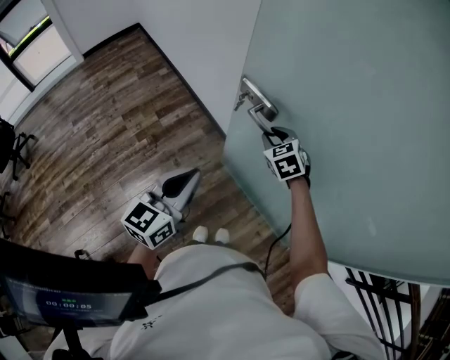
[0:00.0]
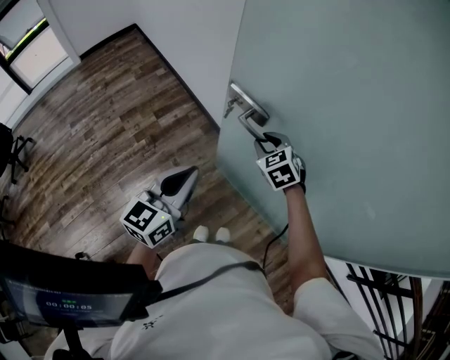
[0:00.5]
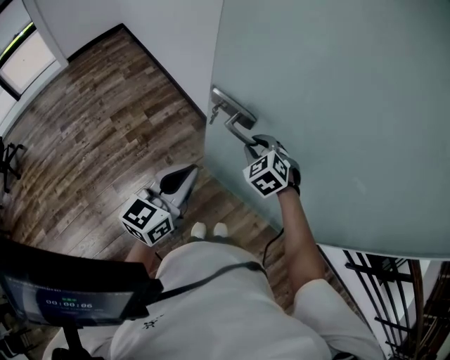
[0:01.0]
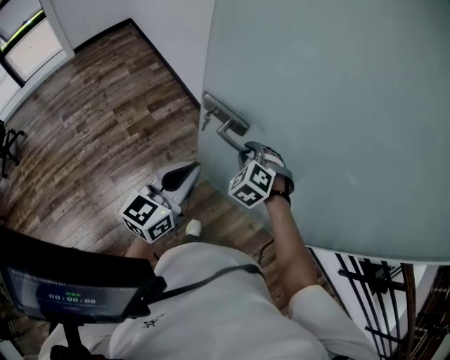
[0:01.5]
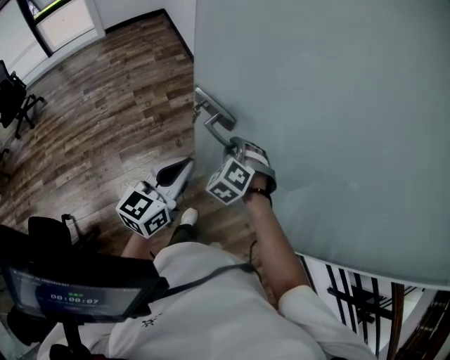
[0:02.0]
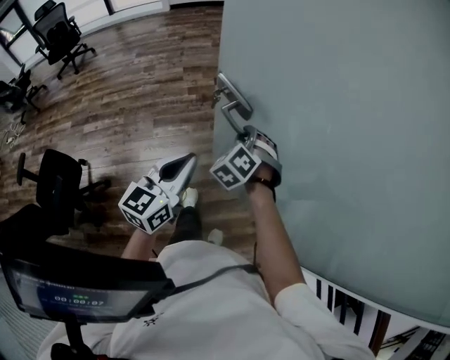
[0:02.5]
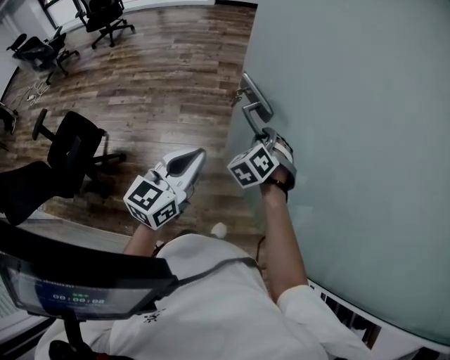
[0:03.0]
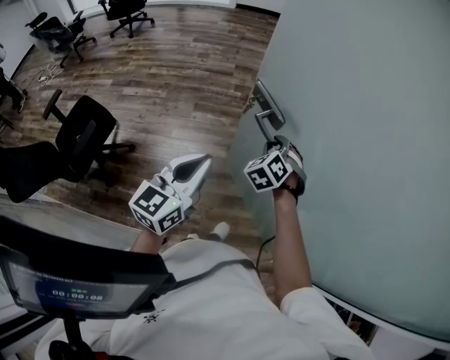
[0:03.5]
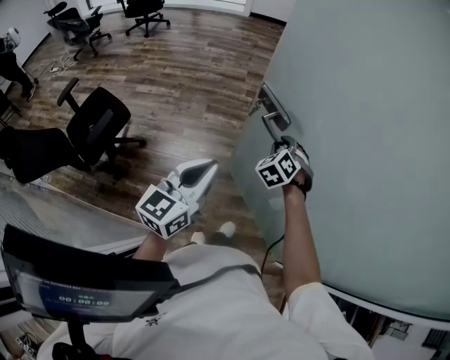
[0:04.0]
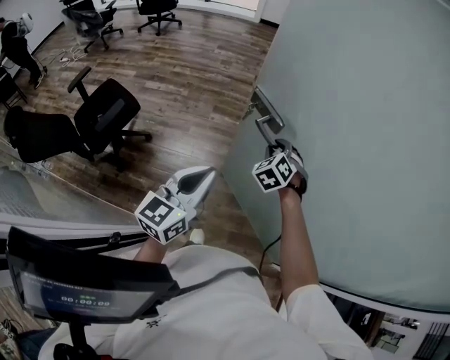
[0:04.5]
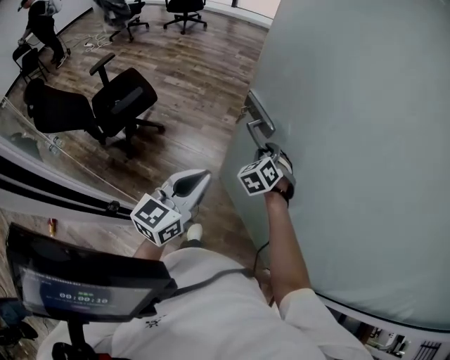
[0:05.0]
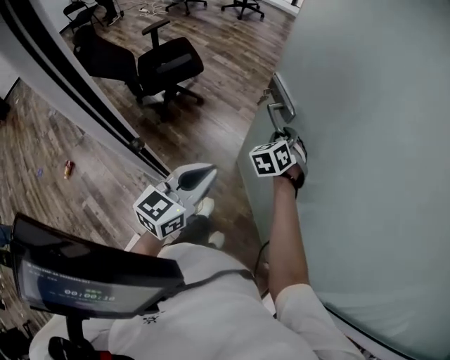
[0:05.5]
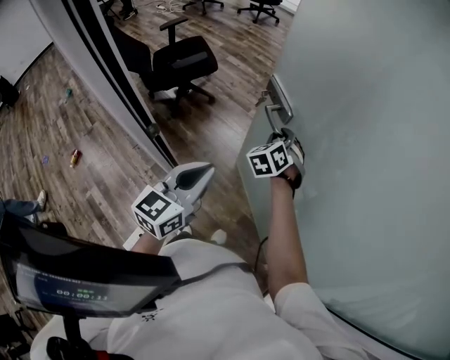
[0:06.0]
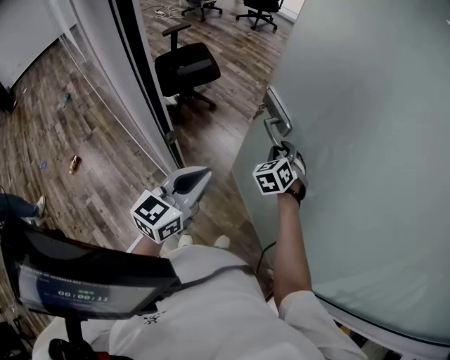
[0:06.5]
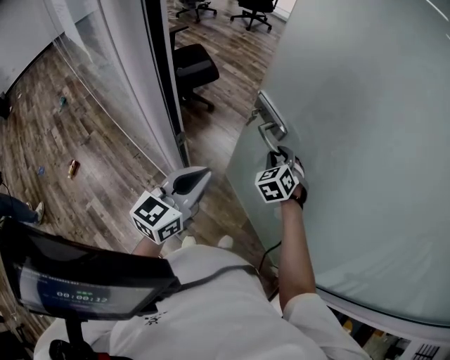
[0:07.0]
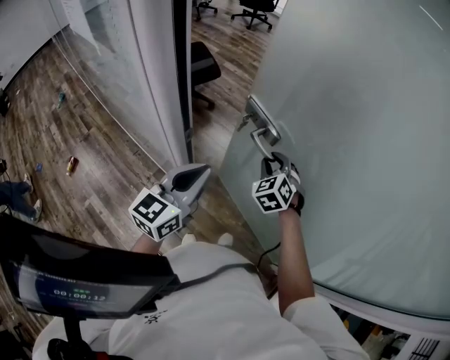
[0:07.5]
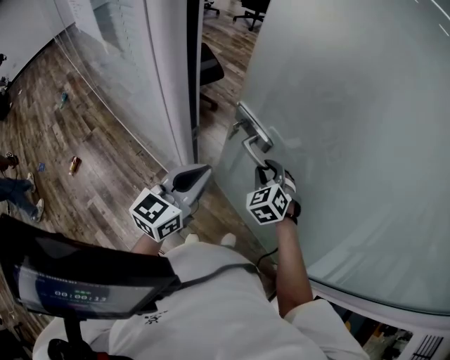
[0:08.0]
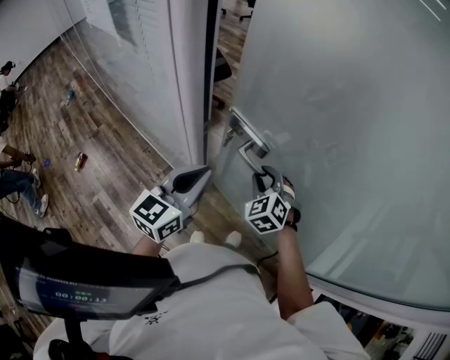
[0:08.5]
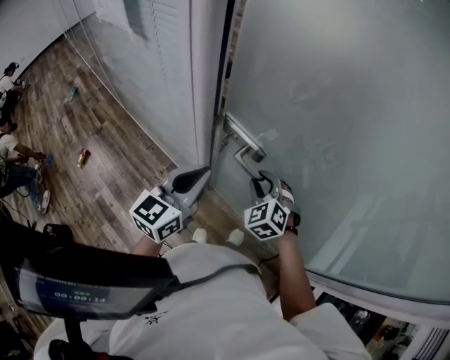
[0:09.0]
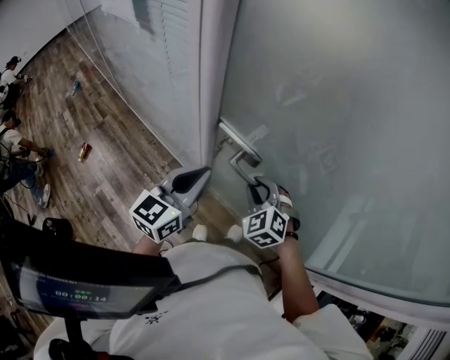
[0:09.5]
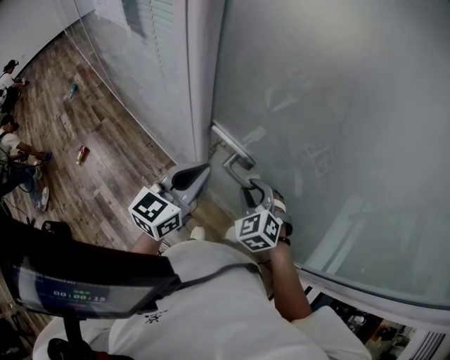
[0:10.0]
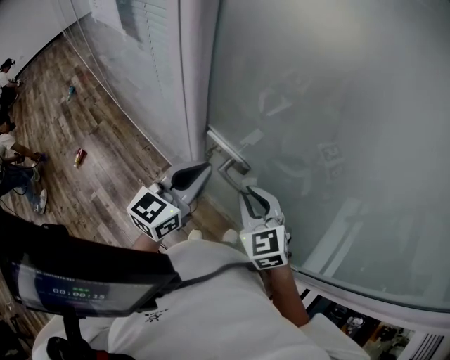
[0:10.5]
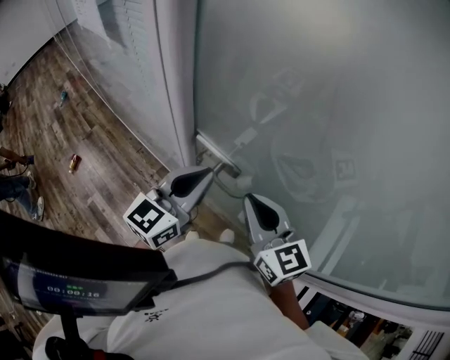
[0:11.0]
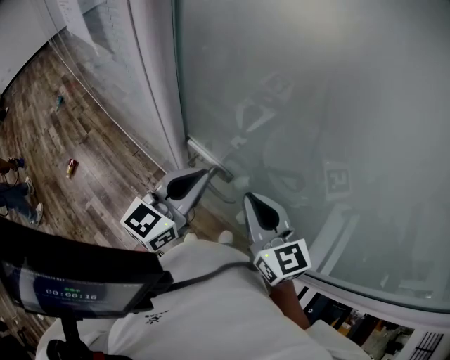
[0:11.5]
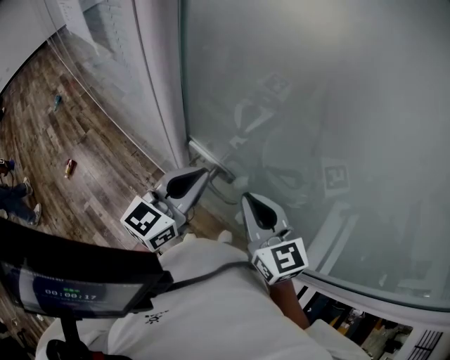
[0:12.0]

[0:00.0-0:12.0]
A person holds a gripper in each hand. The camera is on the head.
0:00.0 to 0:02.0: The right gripper shifts some 20 cm backward, and turns by some 40 degrees. The left gripper travels backward by roughly 10 cm.
0:02.0 to 0:04.0: The left gripper ends up roughly 40 cm from where it was, and turns by about 30 degrees. The right gripper moves roughly 25 cm.
0:04.0 to 0:06.0: The left gripper moves approximately 30 cm, and swivels approximately 30 degrees; the right gripper ends up roughly 25 cm from where it was, and turns by roughly 20 degrees.
0:06.0 to 0:08.0: The right gripper shifts roughly 20 cm backward and to the left. Meanwhile the left gripper heads to the left and backward, covering about 15 cm.
0:08.0 to 0:10.0: The right gripper goes approximately 15 cm backward and to the left, while the left gripper moves backward, about 5 cm.
0:10.0 to 0:12.0: The right gripper is displaced upward by roughly 15 cm, swivels roughly 50 degrees, and closes up. The left gripper ends up approximately 5 cm from where it was.

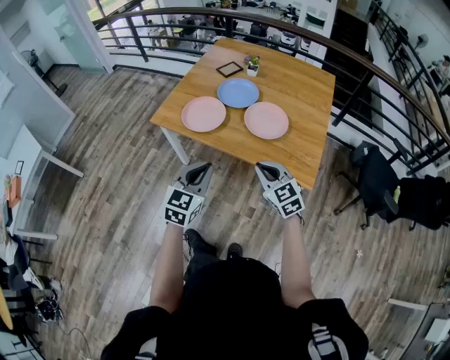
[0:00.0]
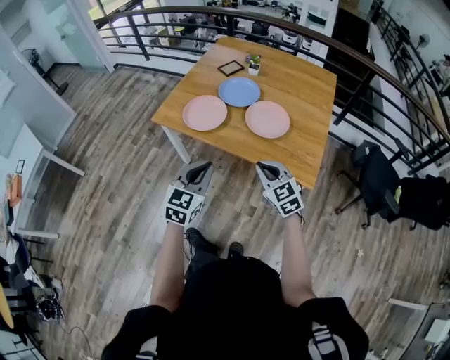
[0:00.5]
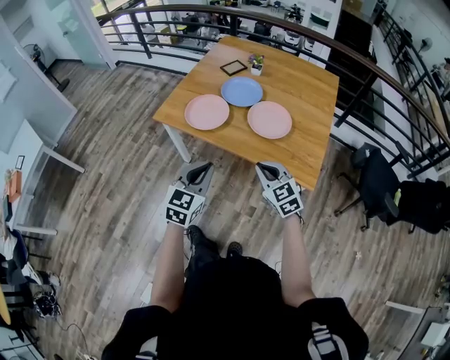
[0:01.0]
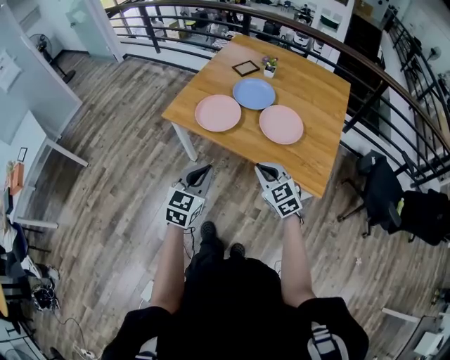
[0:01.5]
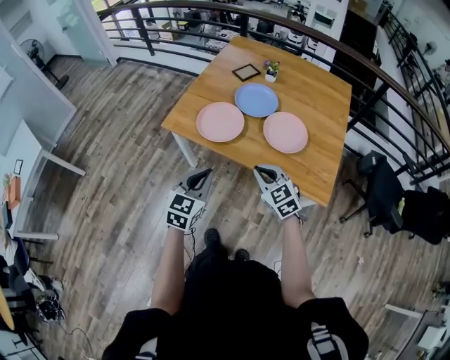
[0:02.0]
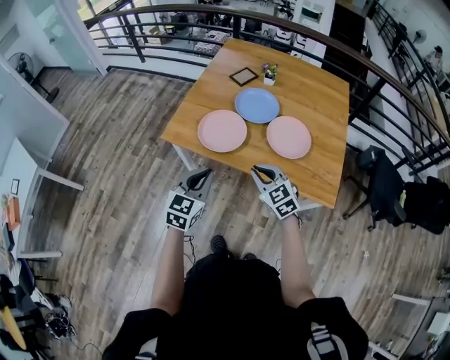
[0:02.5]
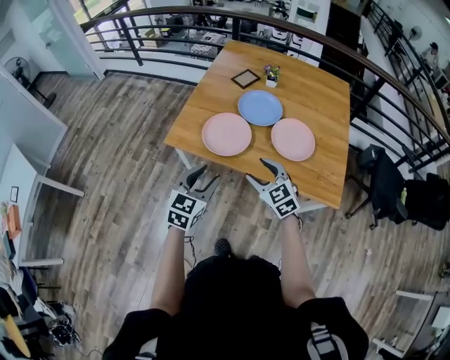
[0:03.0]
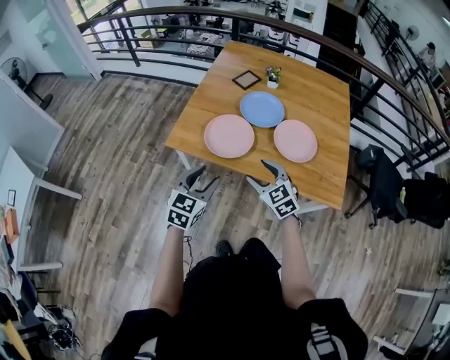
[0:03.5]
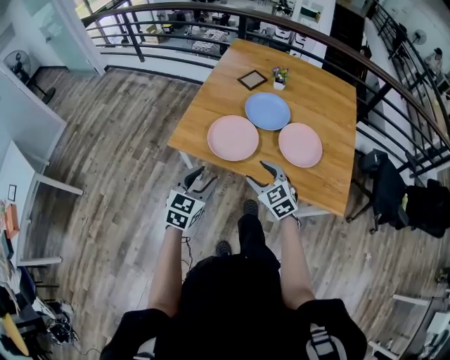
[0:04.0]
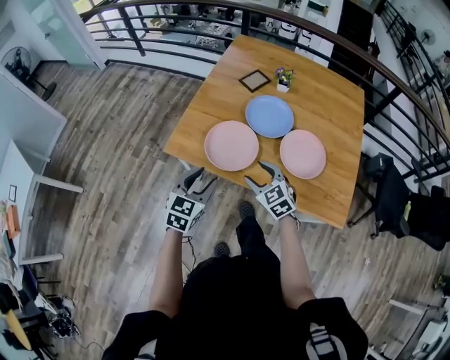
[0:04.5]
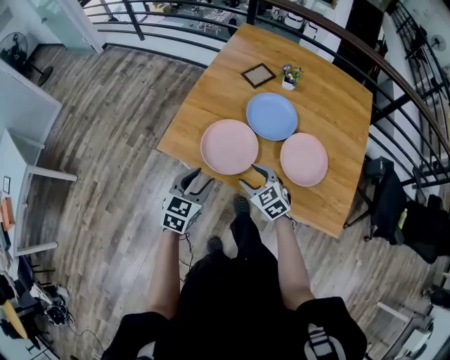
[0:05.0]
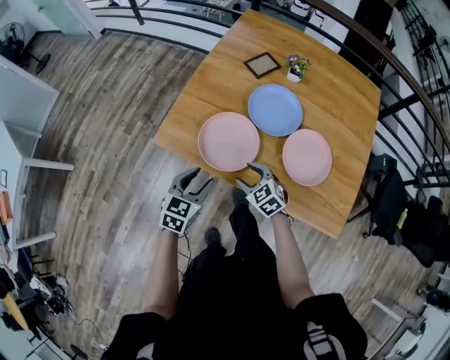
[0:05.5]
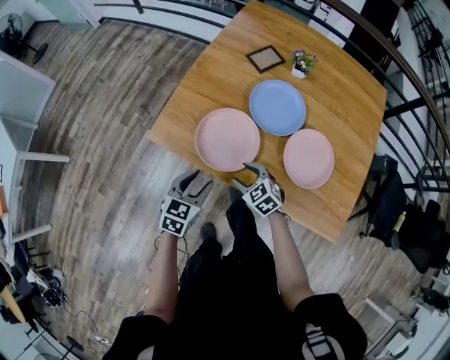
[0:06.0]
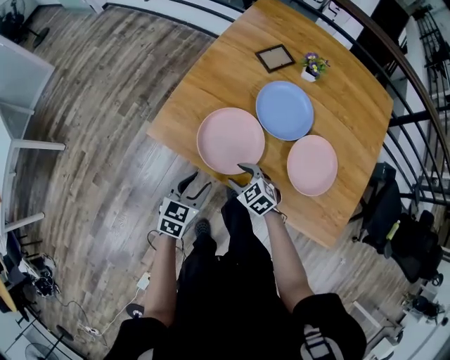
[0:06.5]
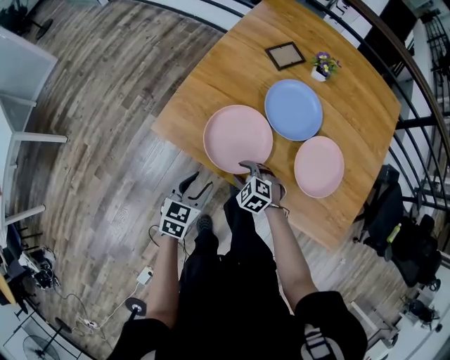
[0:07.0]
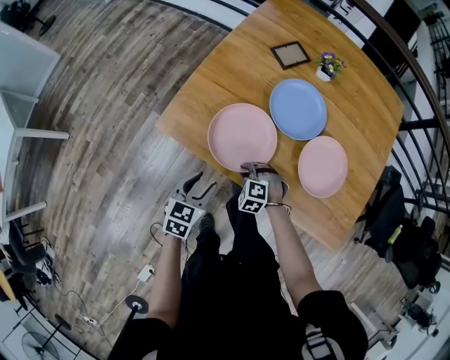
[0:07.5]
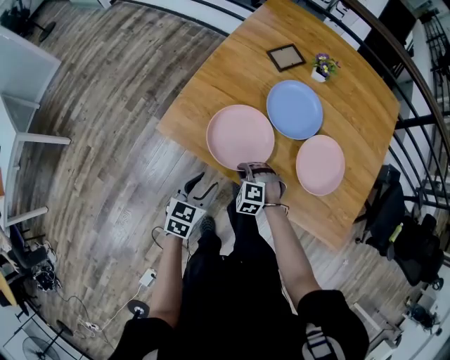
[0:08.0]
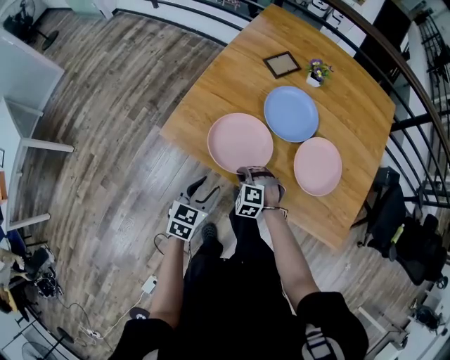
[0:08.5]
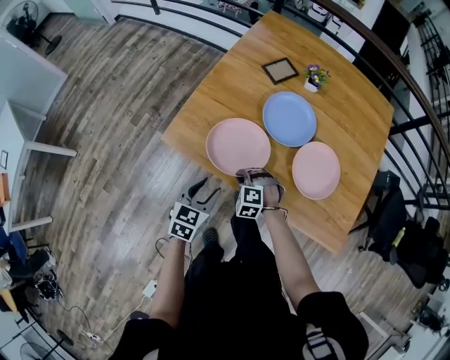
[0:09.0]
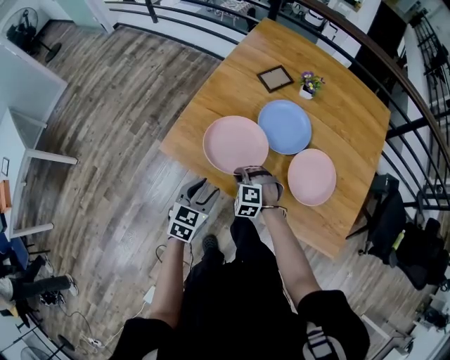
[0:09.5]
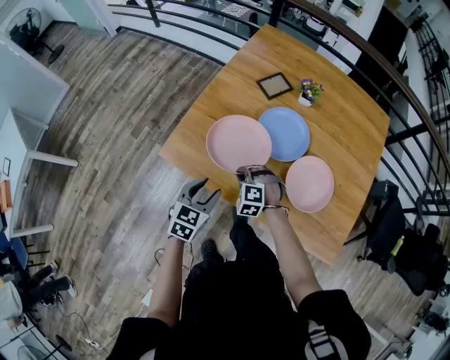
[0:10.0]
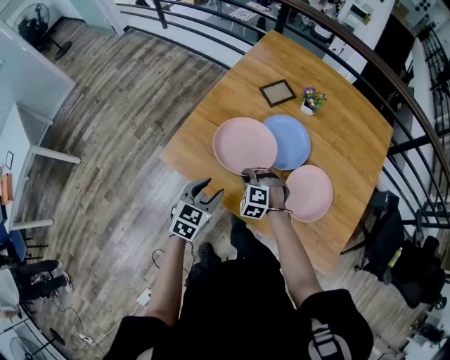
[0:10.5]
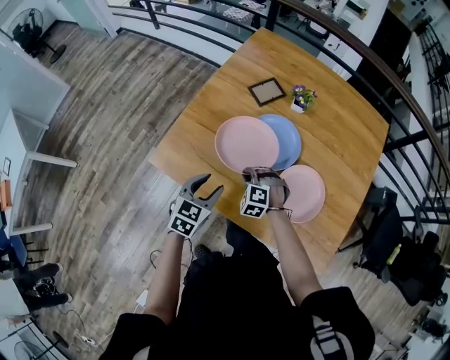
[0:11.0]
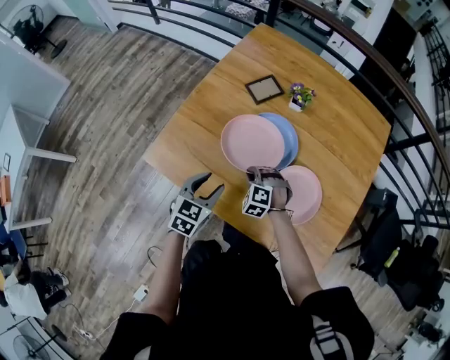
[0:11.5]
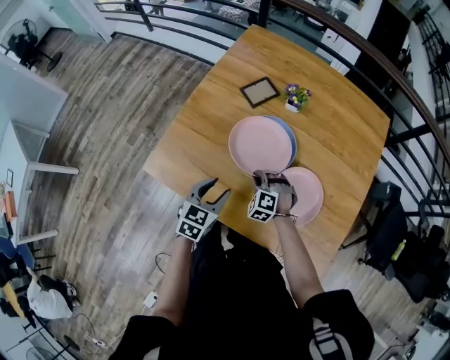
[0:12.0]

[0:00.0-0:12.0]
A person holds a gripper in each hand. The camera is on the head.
0:00.0 to 0:02.0: Both grippers move to the left and forward, approximately 10 cm.
0:02.0 to 0:04.0: The right gripper moves to the left and forward, roughly 15 cm, and opens. Meanwhile the left gripper moves forward and to the left, about 15 cm, and opens.
0:04.0 to 0:06.0: The grippers both shift downward and forward by roughly 15 cm. The right gripper turns by some 20 degrees.
0:06.0 to 0:08.0: The right gripper goes roughly 5 cm downward, rolls counterclockwise, seen from behind, by approximately 40 degrees, and closes.
0:08.0 to 0:10.0: The left gripper shifts roughly 5 cm upward; the right gripper travels upward and forward by some 10 cm.
0:10.0 to 0:12.0: Both grippers move to the right and forward, about 15 cm.

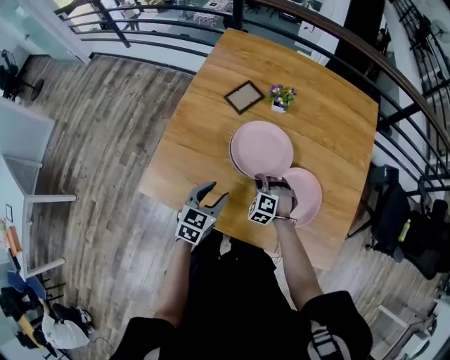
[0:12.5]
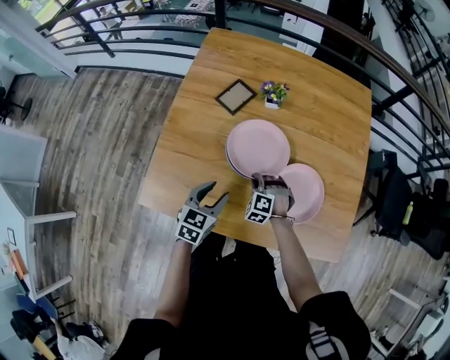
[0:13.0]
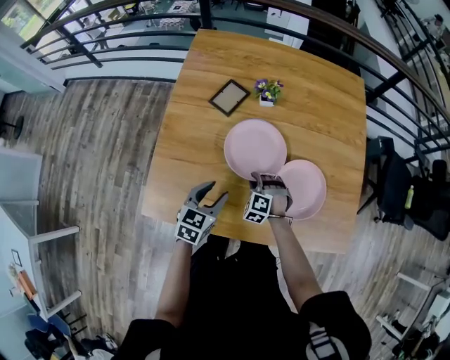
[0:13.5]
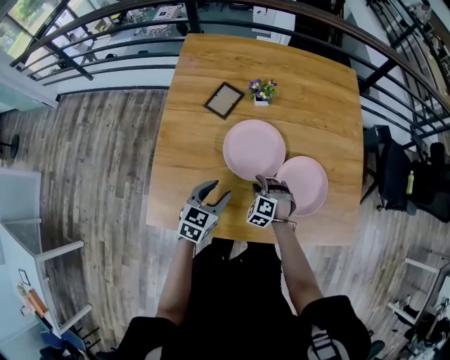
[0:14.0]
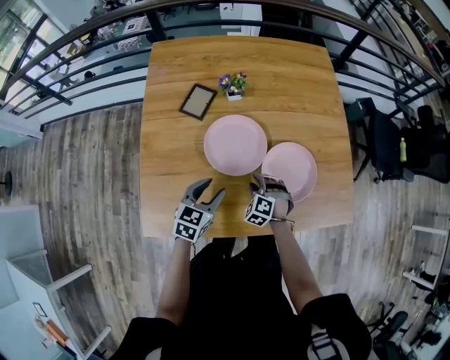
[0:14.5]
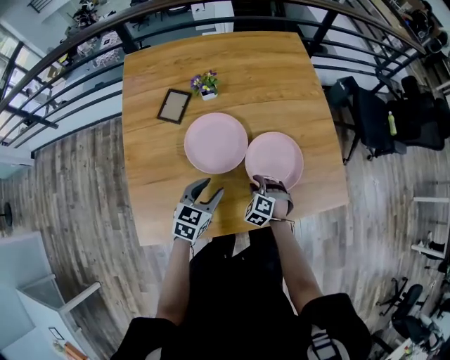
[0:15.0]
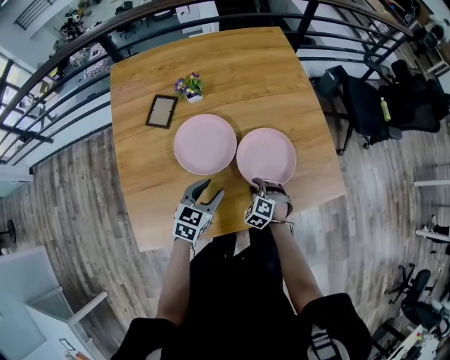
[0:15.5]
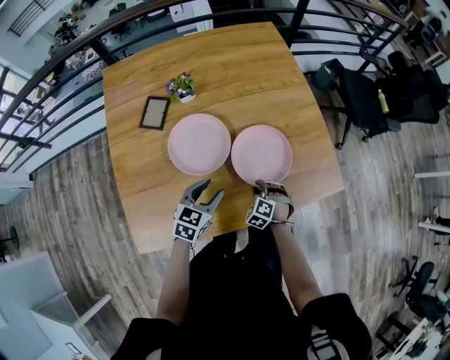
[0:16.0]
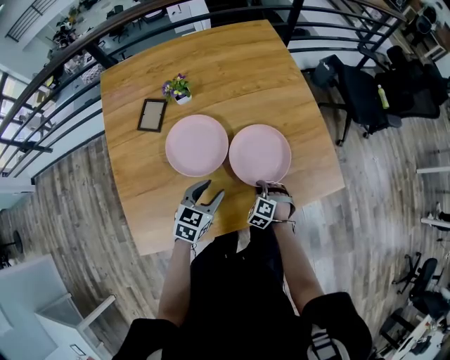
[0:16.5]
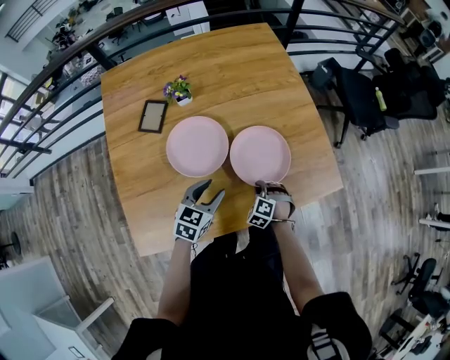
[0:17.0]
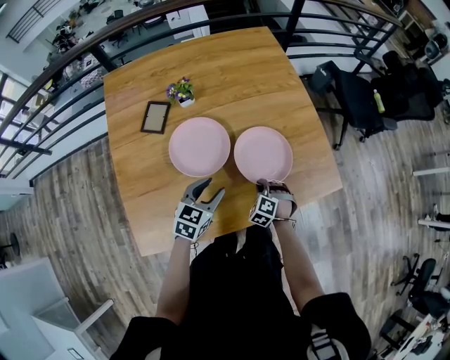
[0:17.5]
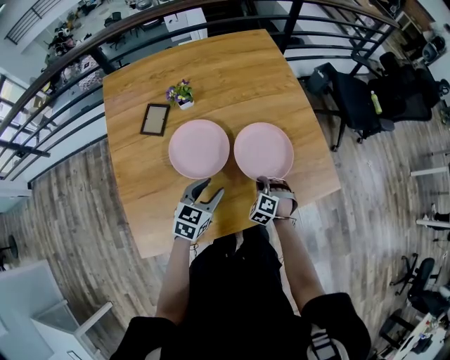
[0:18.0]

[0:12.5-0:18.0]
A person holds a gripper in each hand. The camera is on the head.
0:12.5 to 0:14.5: The left gripper changes its angle by about 20 degrees. Meanwhile the right gripper swivels about 30 degrees, and opens its fingers.
0:14.5 to 0:16.0: Both grippers move to the right, approximately 10 cm.
0:16.0 to 0:18.0: The right gripper changes place by some 5 cm.
